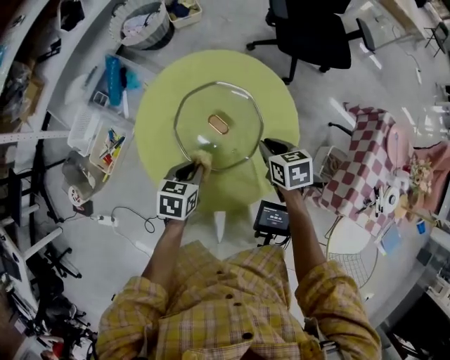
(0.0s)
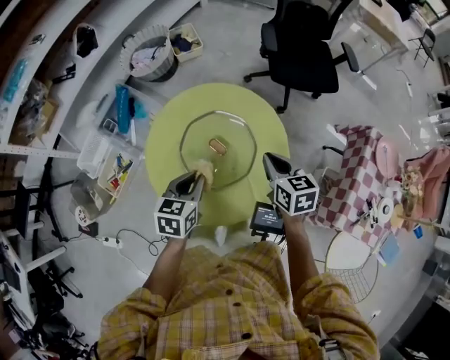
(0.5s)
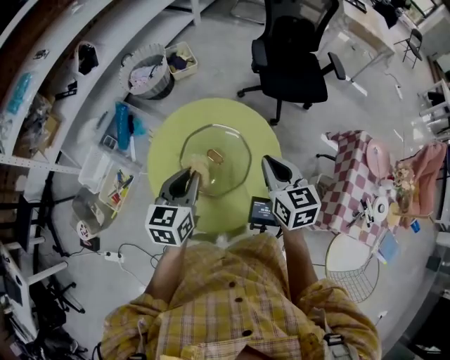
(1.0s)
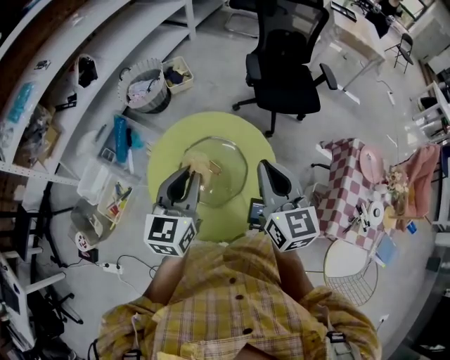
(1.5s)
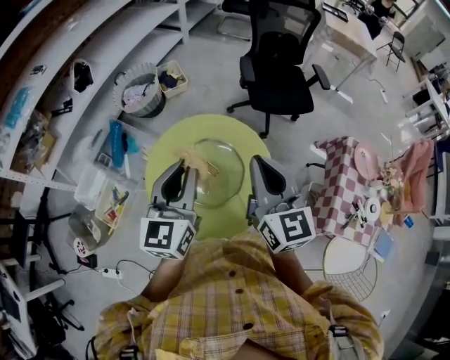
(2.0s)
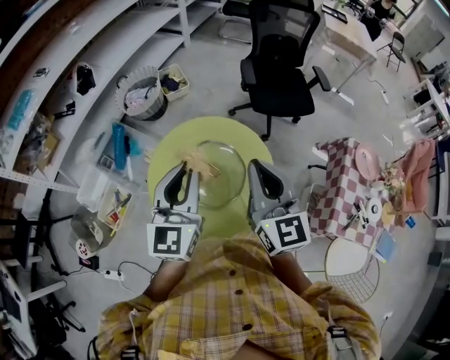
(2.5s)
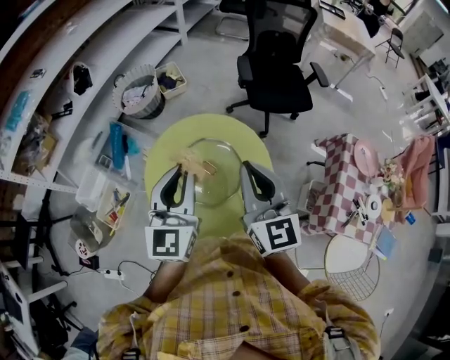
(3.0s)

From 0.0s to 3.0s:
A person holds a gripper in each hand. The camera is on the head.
From 0.0s to 1.5s: The two grippers go approximately 35 cm upward. The right gripper points its fingers some 40 degrees further upward. The left gripper points its fingers roughly 40 degrees further upward.
From 1.5s to 3.0s: The left gripper moves upward, some 5 cm. Meanwhile the right gripper changes place by approximately 5 cm.

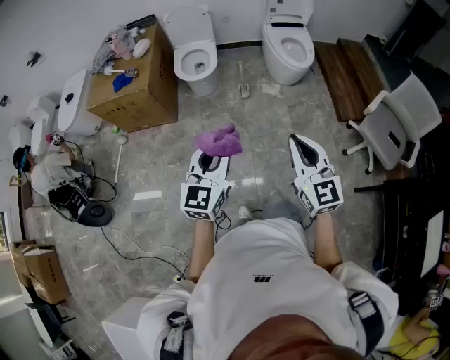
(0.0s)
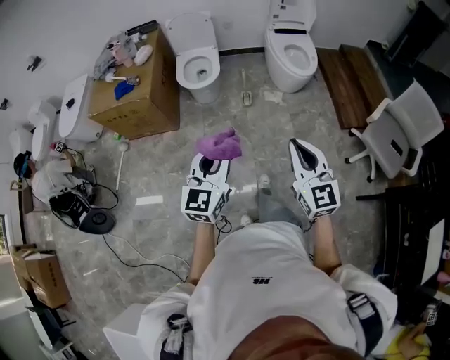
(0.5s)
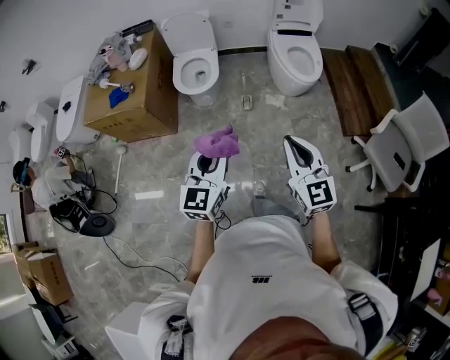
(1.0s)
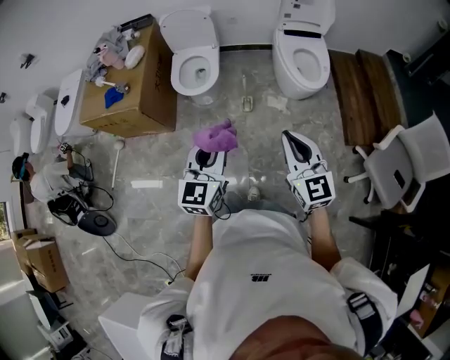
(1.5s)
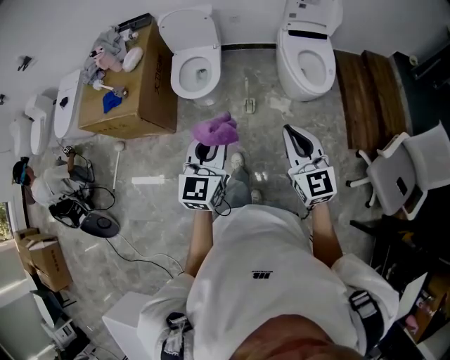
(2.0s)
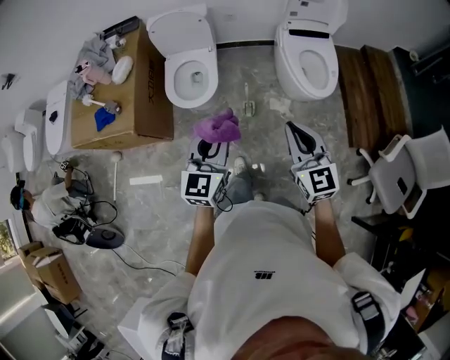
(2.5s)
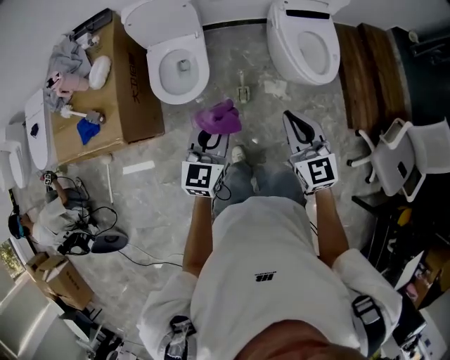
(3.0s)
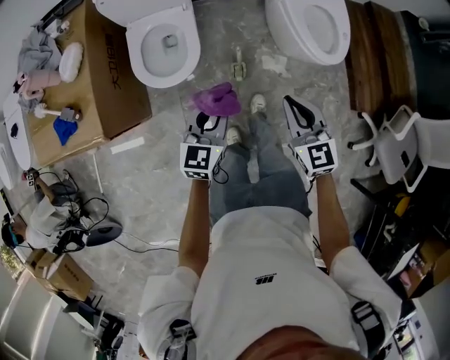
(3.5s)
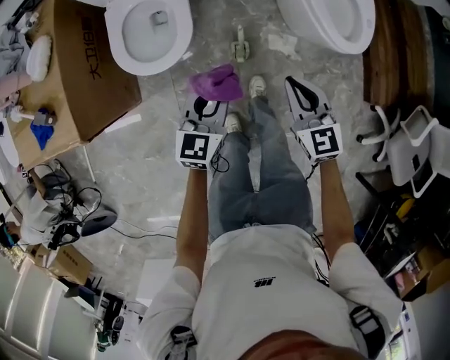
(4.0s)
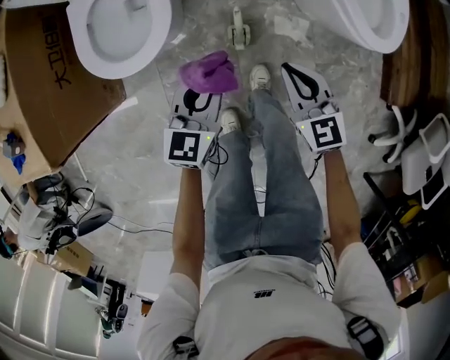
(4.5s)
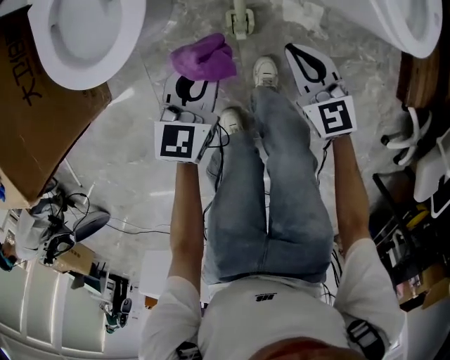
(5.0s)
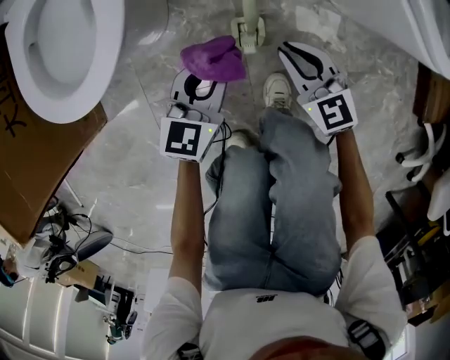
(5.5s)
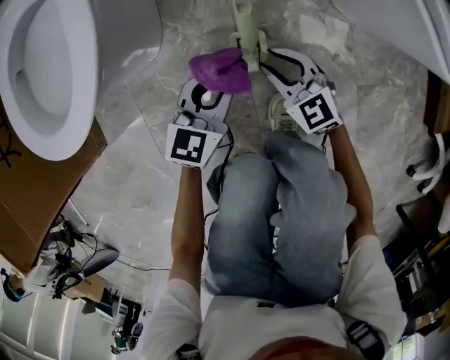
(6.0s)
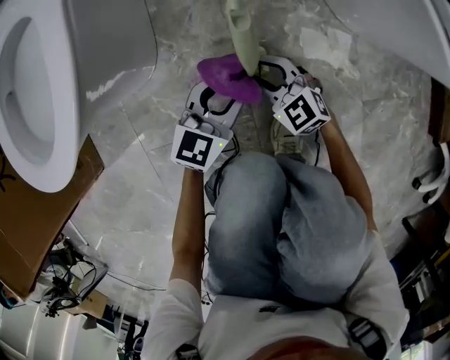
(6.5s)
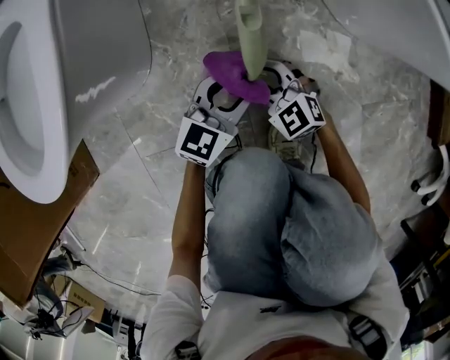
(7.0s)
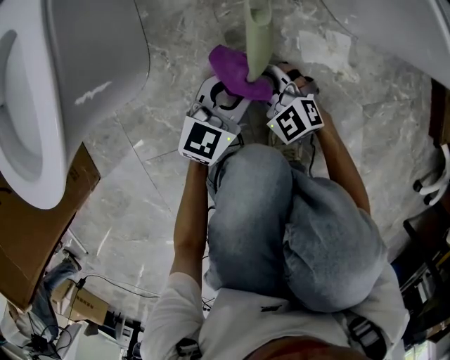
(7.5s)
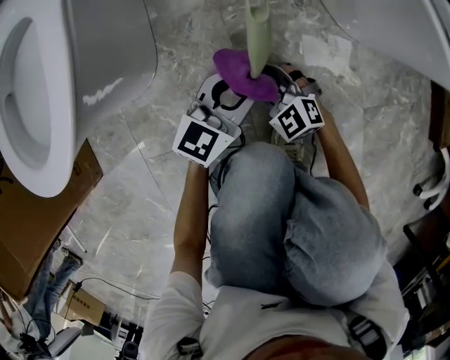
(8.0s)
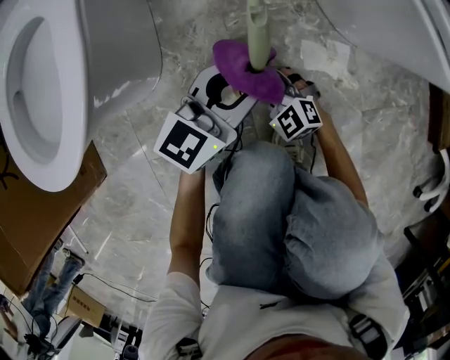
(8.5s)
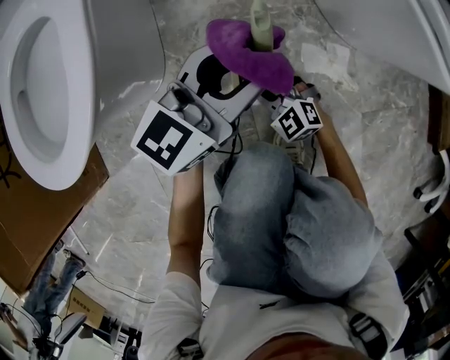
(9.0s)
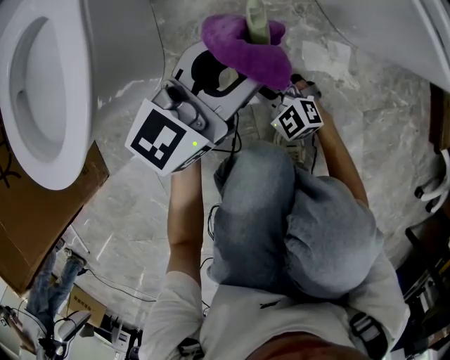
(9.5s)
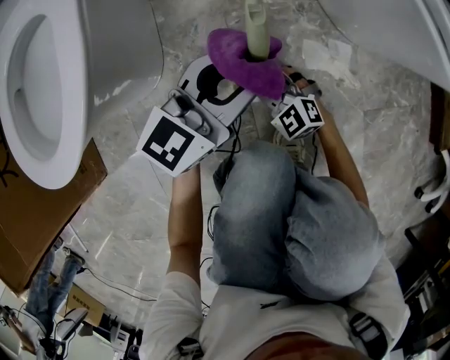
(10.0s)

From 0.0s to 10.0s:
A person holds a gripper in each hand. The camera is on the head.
From 0.0s to 2.0s: The grippers both shift forward by about 40 cm.
From 2.0s to 4.0s: Both grippers travel together downward and forward, roughly 50 cm. The left gripper turns by some 20 degrees.
From 4.0s to 6.0s: The two grippers go roughly 50 cm downward. The right gripper swivels roughly 20 degrees, and opens up.
From 6.0s to 8.0s: The left gripper moves to the right, approximately 5 cm. The right gripper goes about 10 cm downward.
From 8.0s to 10.0s: The left gripper heads upward, covering about 10 cm.

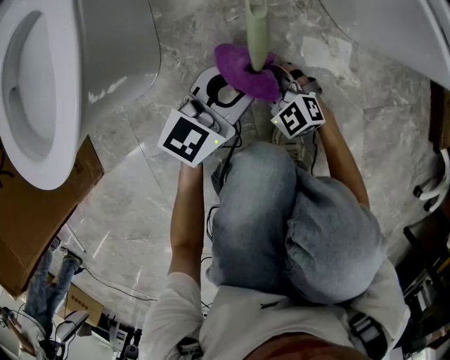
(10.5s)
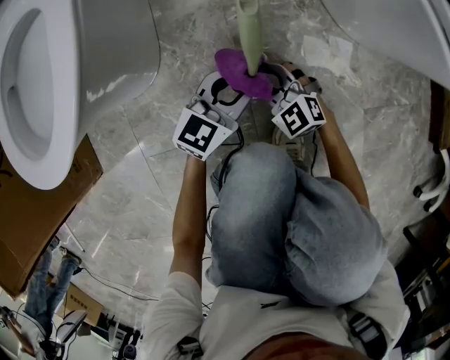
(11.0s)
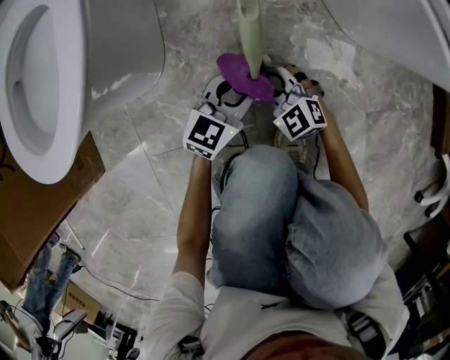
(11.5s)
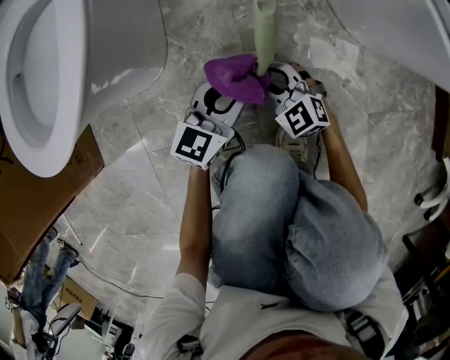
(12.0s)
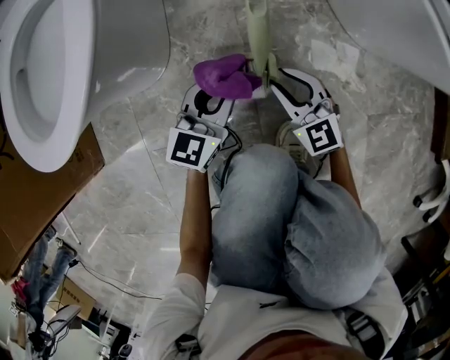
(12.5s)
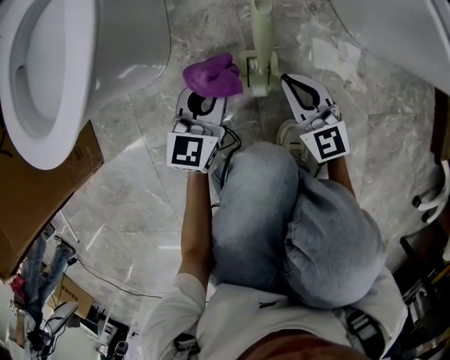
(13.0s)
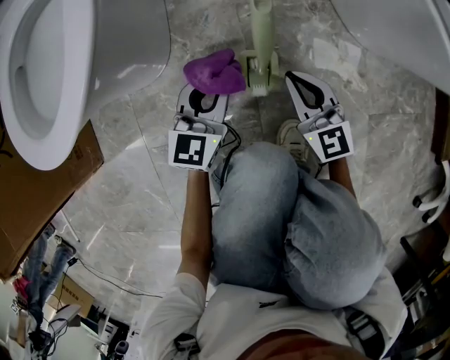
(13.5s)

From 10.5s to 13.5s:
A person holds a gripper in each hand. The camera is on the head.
From 10.5s to 12.0s: The left gripper moves downward, approximately 5 cm.
From 12.0s to 13.5s: The left gripper changes place by roughly 5 cm, while the right gripper is displaced upward and to the right by roughly 10 cm, changes its angle by roughly 30 degrees, and closes its fingers.

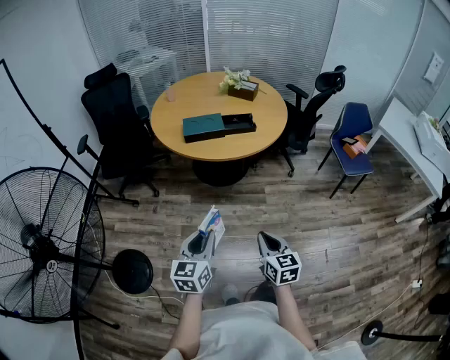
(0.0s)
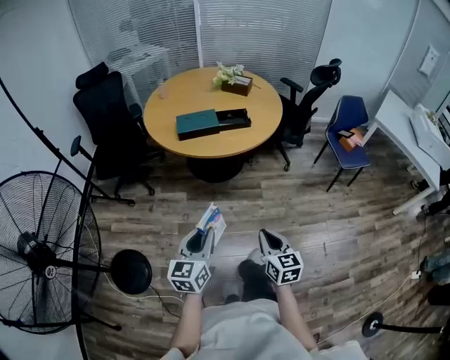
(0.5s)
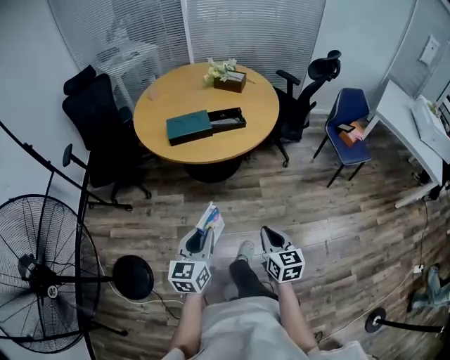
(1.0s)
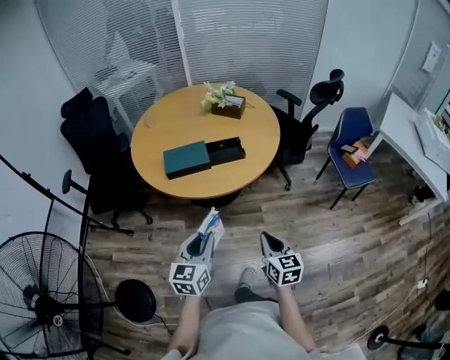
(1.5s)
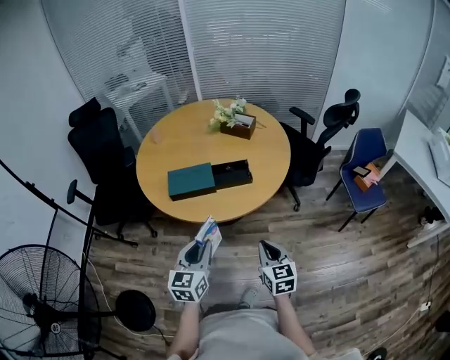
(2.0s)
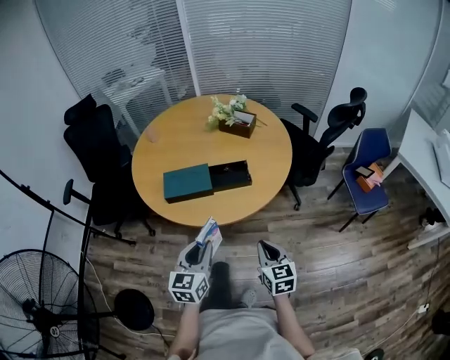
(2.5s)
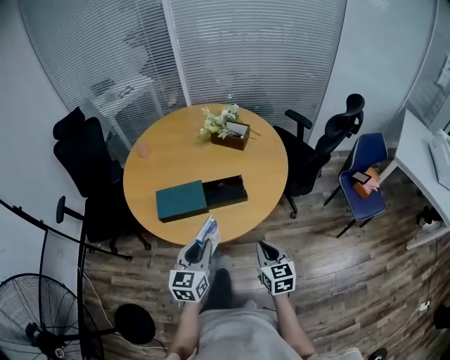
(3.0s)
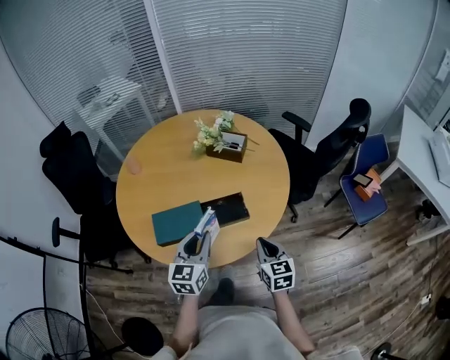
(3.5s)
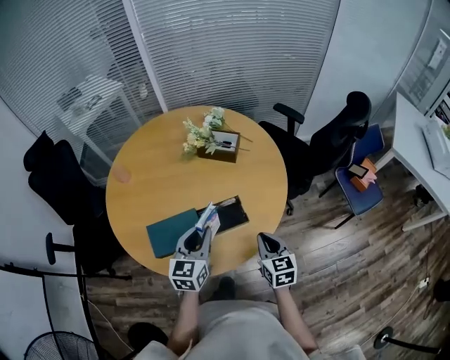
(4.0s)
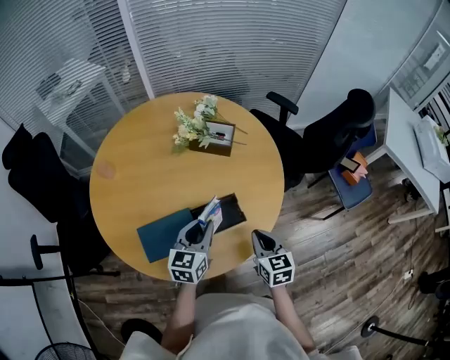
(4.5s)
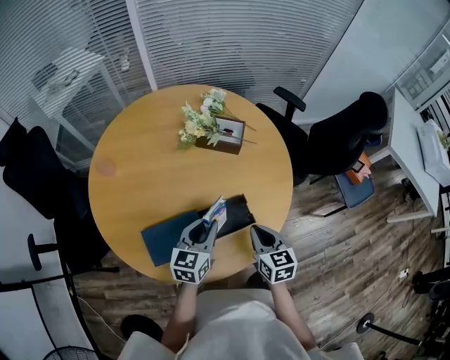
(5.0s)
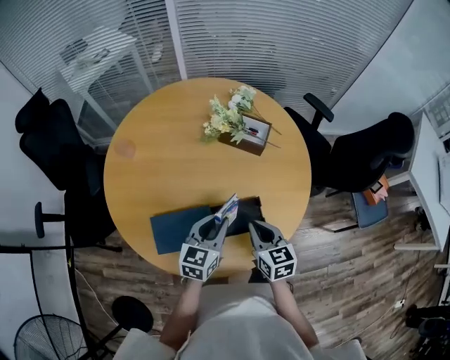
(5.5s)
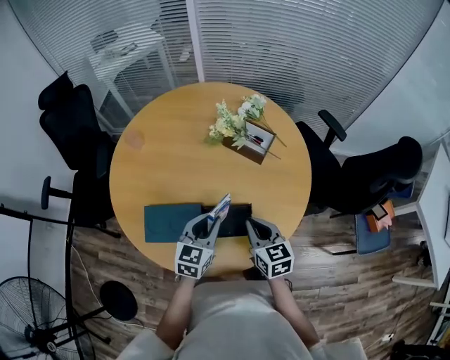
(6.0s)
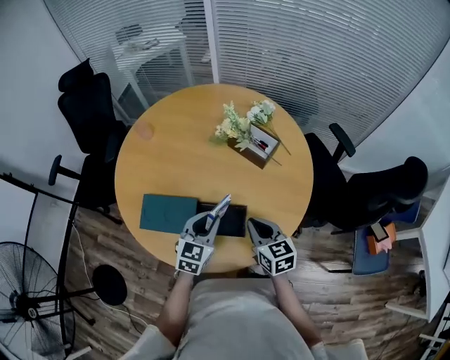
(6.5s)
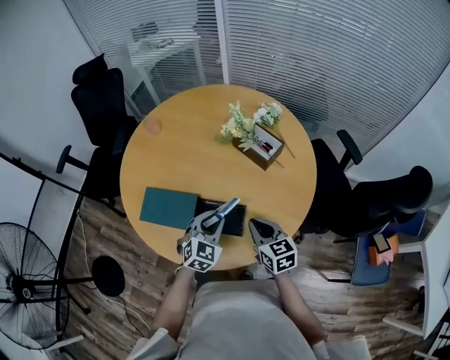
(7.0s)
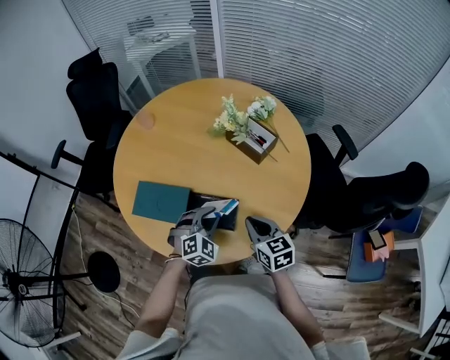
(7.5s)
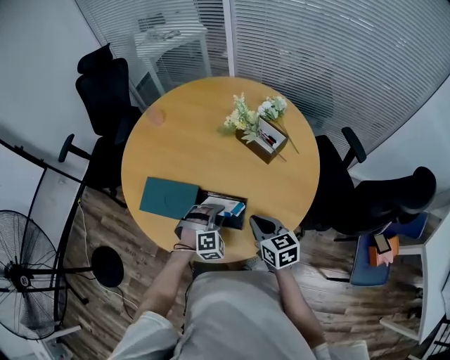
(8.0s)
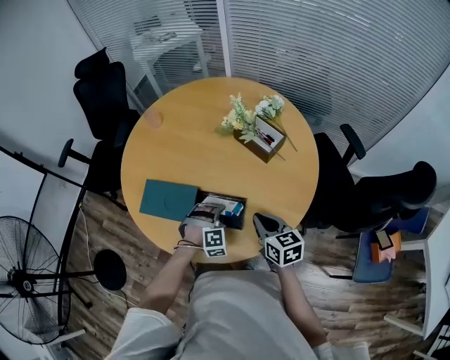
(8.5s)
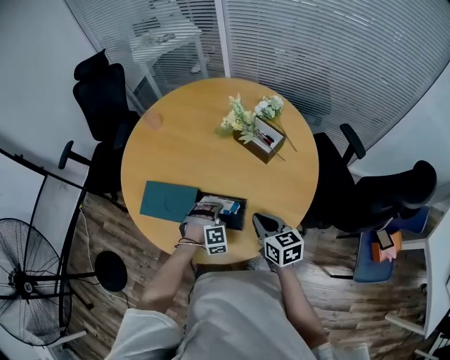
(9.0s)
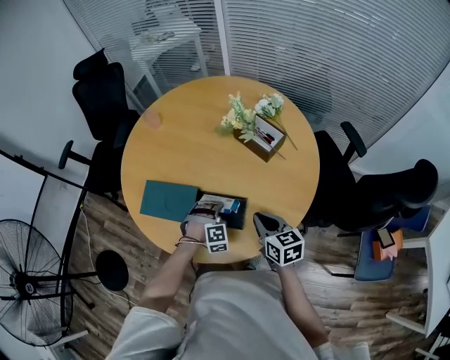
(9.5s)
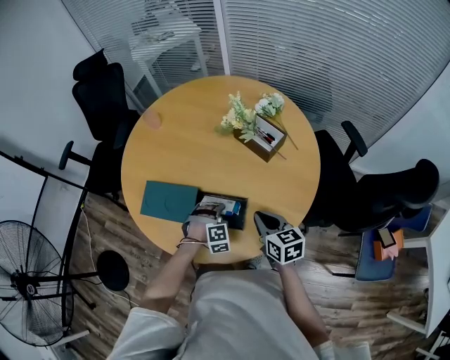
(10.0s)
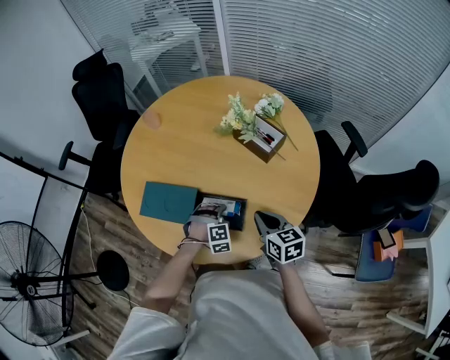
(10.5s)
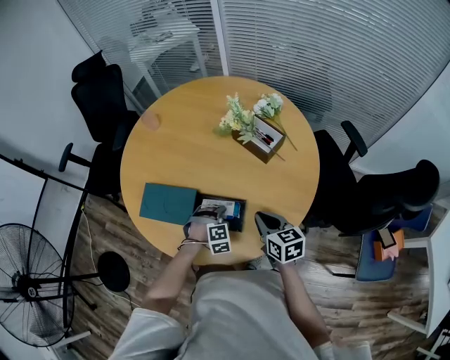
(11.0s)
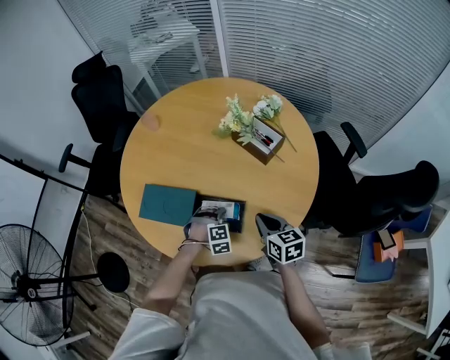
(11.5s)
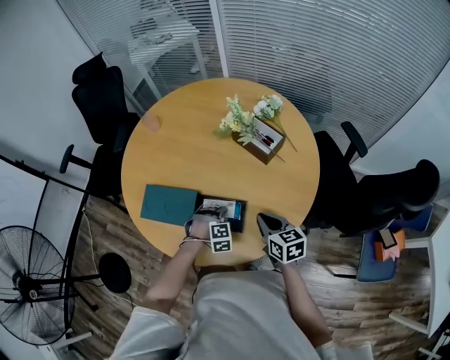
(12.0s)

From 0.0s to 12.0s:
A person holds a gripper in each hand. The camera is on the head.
From 0.0s to 2.0s: The grippers both shift forward by about 30 cm.
From 2.0s to 4.0s: The grippers both shift forward by approximately 30 cm.
From 4.0s to 6.0s: The left gripper is displaced forward and downward by some 10 cm, while the right gripper is displaced forward and to the left by approximately 15 cm, and turns by about 20 degrees.
From 6.0s to 8.0s: The right gripper moves to the right, roughly 5 cm; the left gripper shifts roughly 15 cm downward and to the right, and twists approximately 60 degrees clockwise, seen from behind.
From 8.0s to 10.0s: The left gripper goes some 5 cm downward.
From 10.0s to 12.0s: The grippers stay close to where they were, moving slightly.
